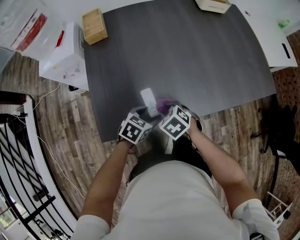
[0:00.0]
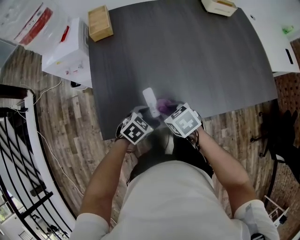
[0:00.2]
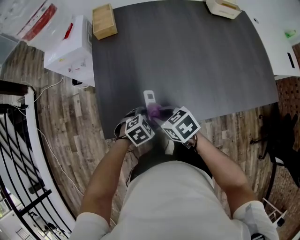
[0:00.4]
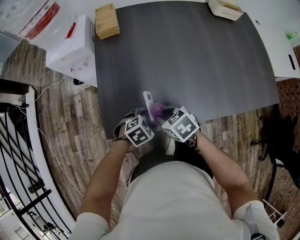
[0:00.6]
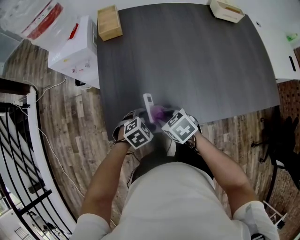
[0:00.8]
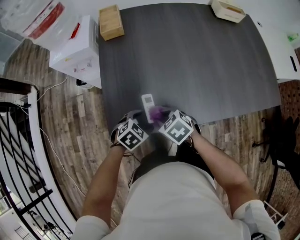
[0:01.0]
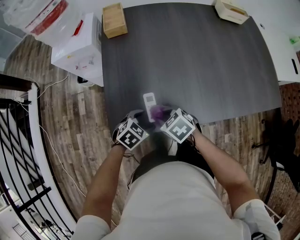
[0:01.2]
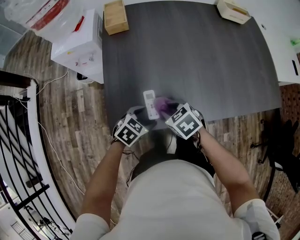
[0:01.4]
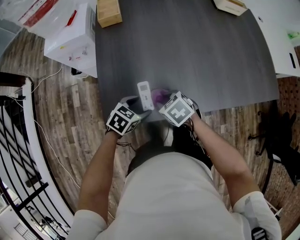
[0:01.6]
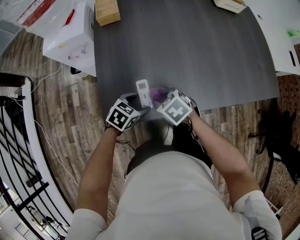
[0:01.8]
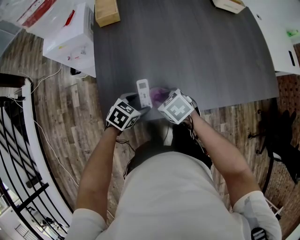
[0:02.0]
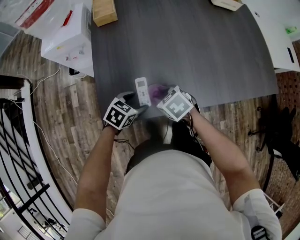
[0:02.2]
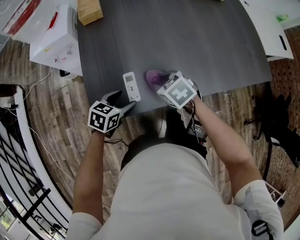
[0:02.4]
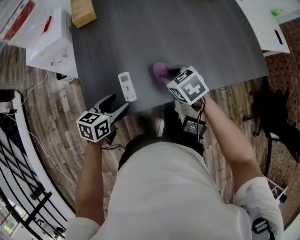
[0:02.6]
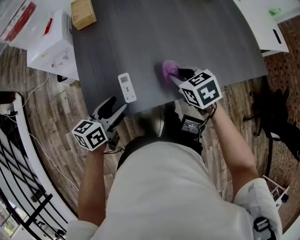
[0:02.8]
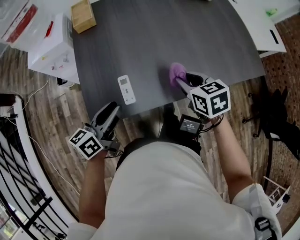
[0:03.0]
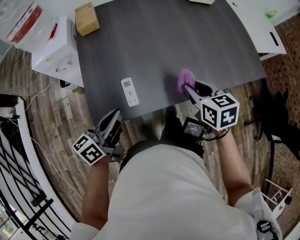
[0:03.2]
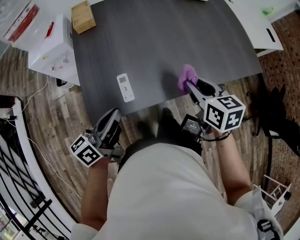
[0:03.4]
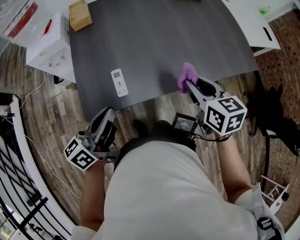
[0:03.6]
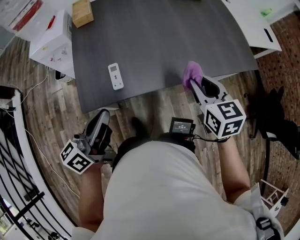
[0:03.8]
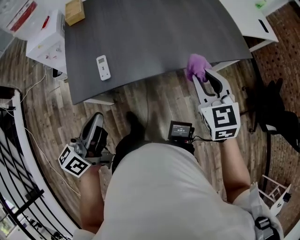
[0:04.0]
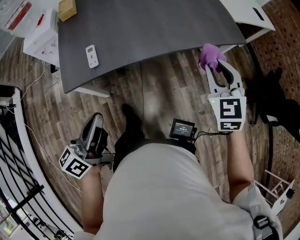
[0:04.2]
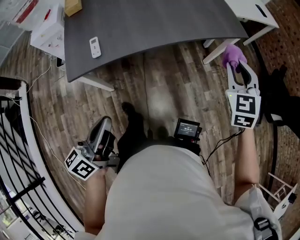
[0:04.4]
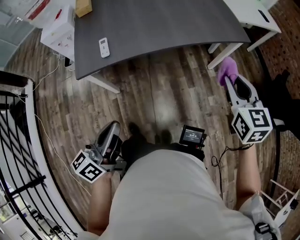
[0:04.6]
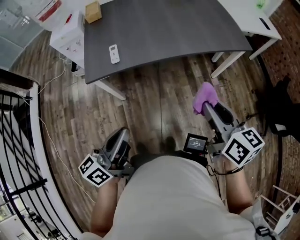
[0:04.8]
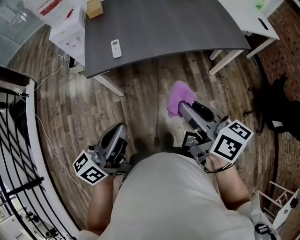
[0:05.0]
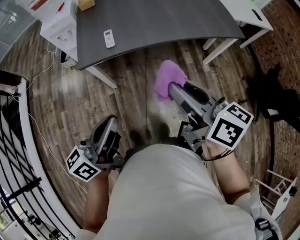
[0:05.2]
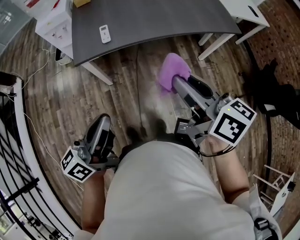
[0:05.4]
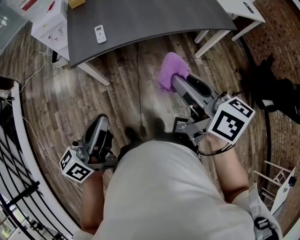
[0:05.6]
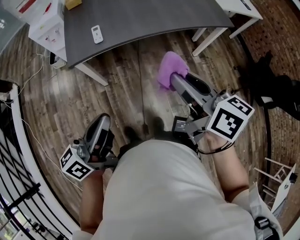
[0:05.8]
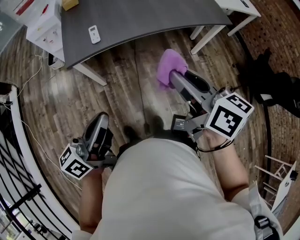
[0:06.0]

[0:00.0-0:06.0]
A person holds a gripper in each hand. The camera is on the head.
0:00.0 to 0:01.6: The right gripper moves approximately 5 cm; the left gripper shifts by roughly 10 cm.
0:01.6 to 0:03.0: The left gripper shifts approximately 15 cm upward, tips its fingers upward by some 40 degrees, and closes, while the right gripper moves to the right and upward, some 20 cm, and changes its angle by approximately 30 degrees.
0:03.0 to 0:04.4: The left gripper goes about 30 cm backward and to the right, and closes its fingers, while the right gripper goes some 40 cm to the right and backward, and swivels approximately 40 degrees.
0:04.4 to 0:06.0: The left gripper shifts about 10 cm backward; the right gripper heads to the left and backward, covering approximately 30 cm, and rotates around the line of its fingers by approximately 50 degrees, clockwise from behind.

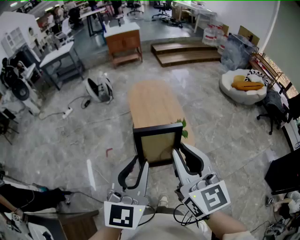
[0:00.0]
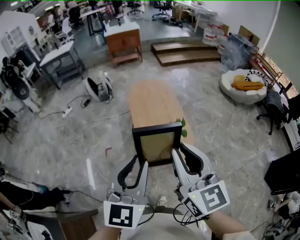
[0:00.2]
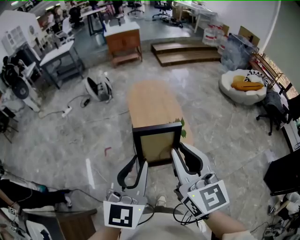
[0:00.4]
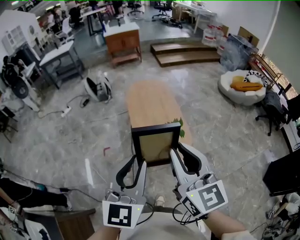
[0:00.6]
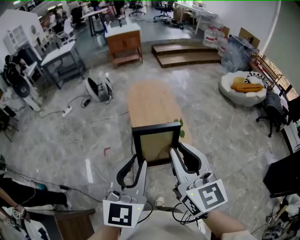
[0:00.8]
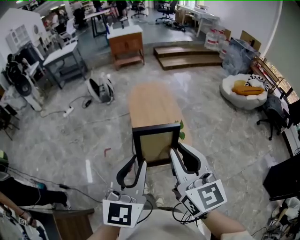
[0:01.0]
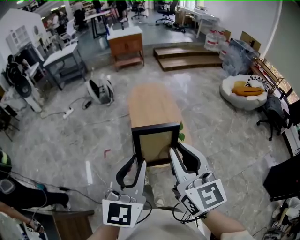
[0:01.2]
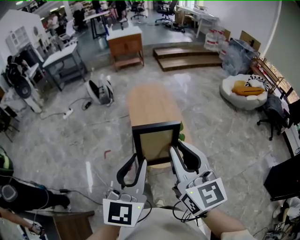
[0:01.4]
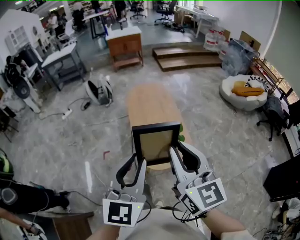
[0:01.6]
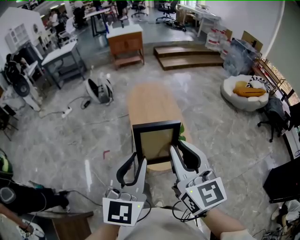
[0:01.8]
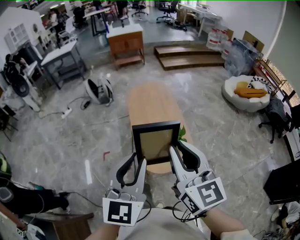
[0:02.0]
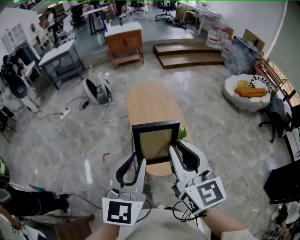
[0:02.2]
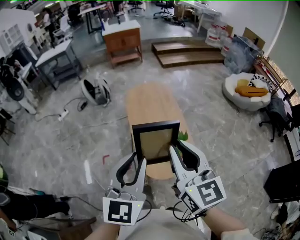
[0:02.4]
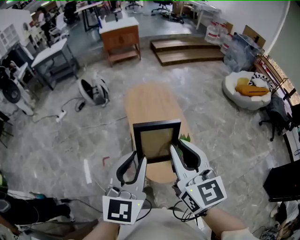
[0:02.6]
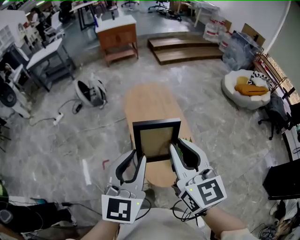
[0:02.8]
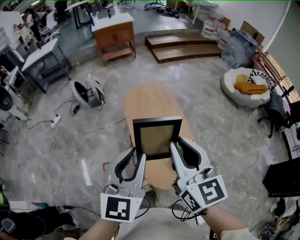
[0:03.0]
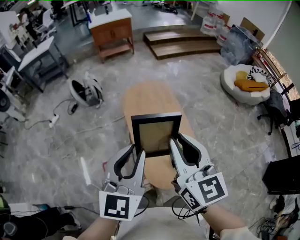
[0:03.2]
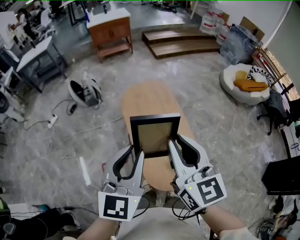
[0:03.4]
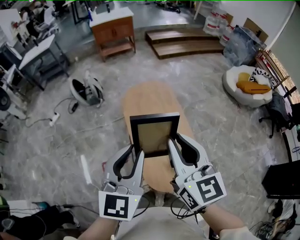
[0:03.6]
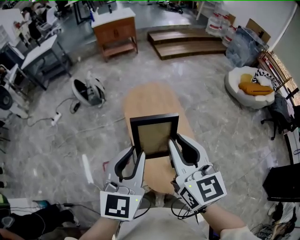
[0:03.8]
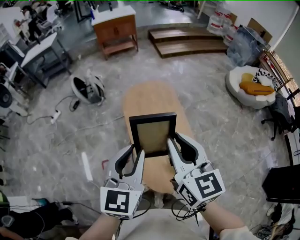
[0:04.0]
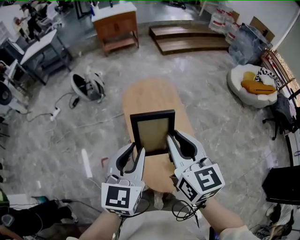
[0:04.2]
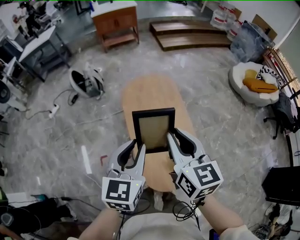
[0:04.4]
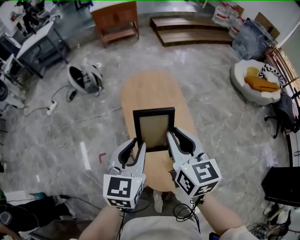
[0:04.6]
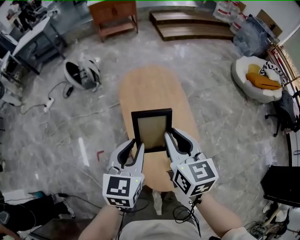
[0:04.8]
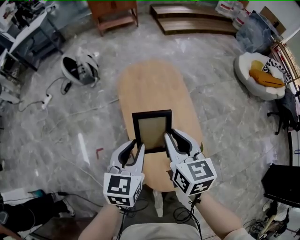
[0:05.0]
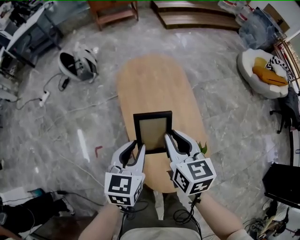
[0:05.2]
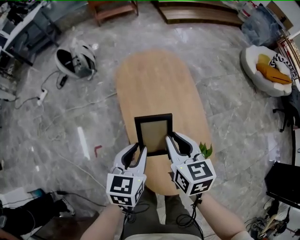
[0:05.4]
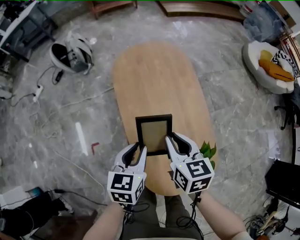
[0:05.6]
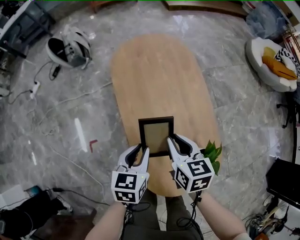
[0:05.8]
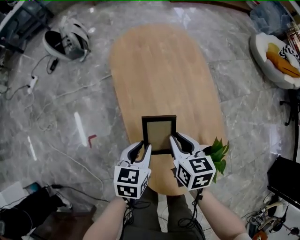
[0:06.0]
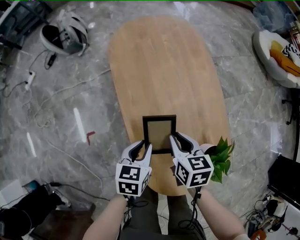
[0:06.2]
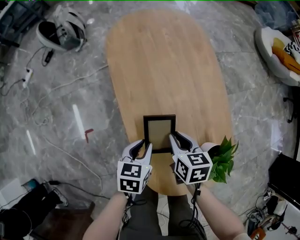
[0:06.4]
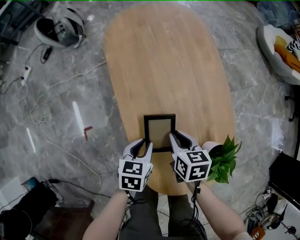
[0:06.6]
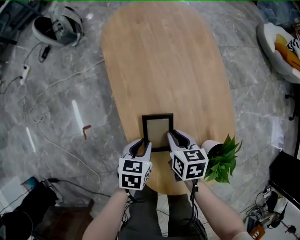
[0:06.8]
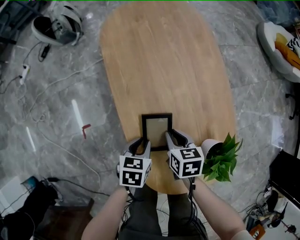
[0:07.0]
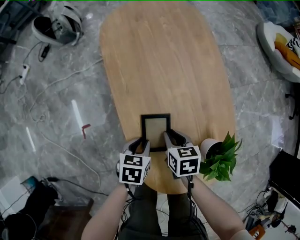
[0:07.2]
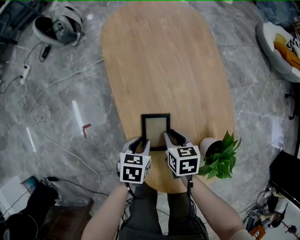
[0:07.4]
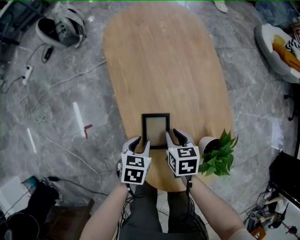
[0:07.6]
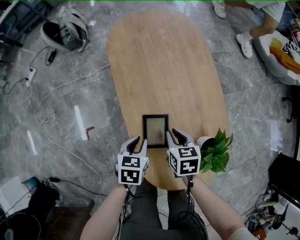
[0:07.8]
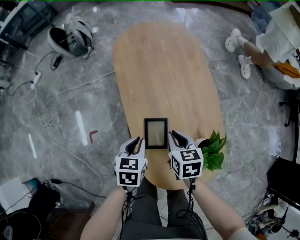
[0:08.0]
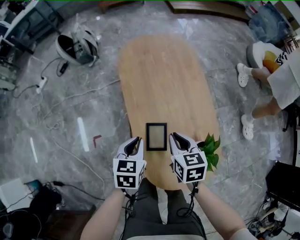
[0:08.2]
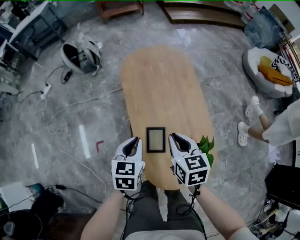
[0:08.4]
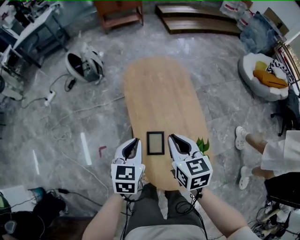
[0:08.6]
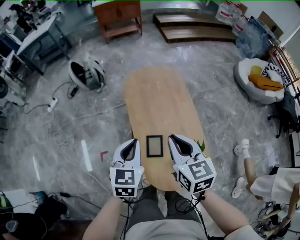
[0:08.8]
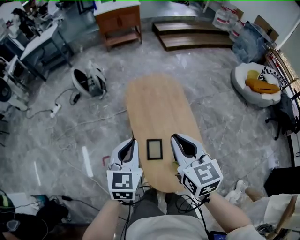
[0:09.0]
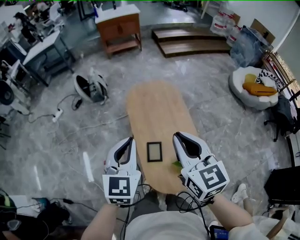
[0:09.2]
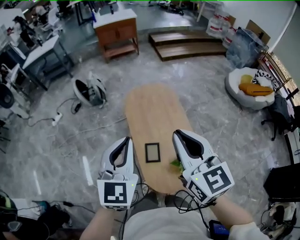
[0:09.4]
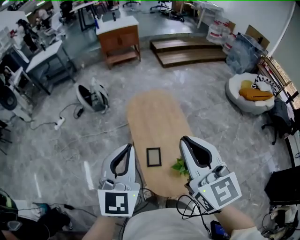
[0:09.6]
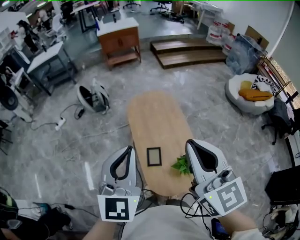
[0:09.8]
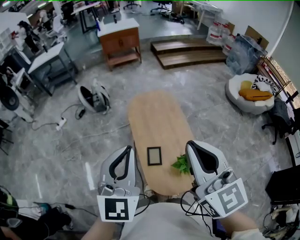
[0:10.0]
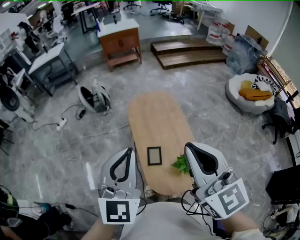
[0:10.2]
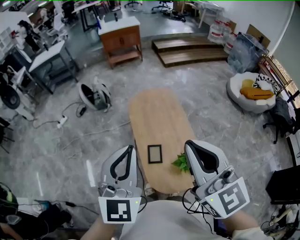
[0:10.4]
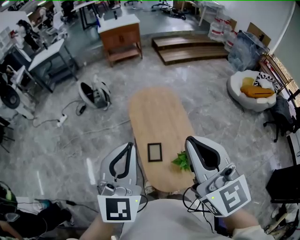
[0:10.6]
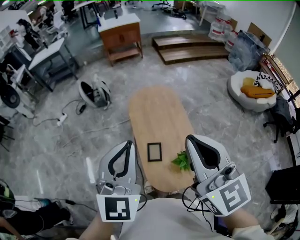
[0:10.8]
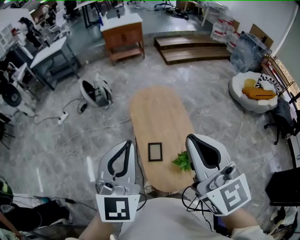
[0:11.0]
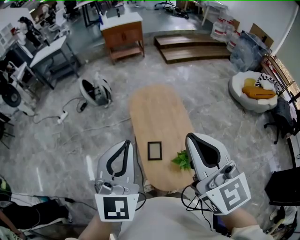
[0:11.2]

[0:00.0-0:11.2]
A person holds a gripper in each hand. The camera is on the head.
0:00.0 to 0:01.6: The grippers stay close to where they were, moving slightly.
0:01.6 to 0:03.2: The two grippers go roughly 30 cm forward.
0:03.2 to 0:04.8: Both grippers travel together downward and forward, approximately 20 cm. The left gripper changes its angle by about 20 degrees.
0:04.8 to 0:06.4: Both grippers move downward, roughly 40 cm. The left gripper rotates approximately 30 degrees. The right gripper turns by about 30 degrees.
0:06.4 to 0:08.0: The right gripper moves about 5 cm, while the left gripper is displaced upward by some 5 cm.
0:08.0 to 0:09.6: The grippers both shift upward by some 60 cm. The right gripper tips its fingers upward by some 50 degrees. Meanwhile the left gripper angles its fingers upward, by roughly 50 degrees.
0:09.6 to 0:11.2: The grippers move only a little.

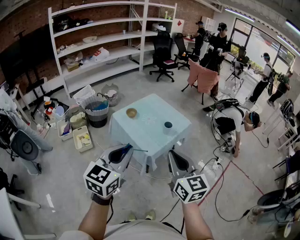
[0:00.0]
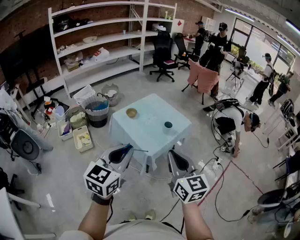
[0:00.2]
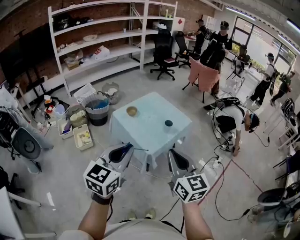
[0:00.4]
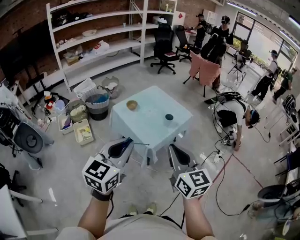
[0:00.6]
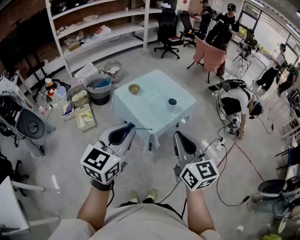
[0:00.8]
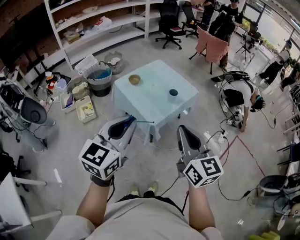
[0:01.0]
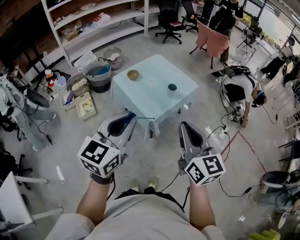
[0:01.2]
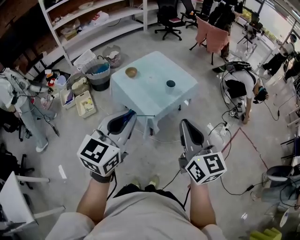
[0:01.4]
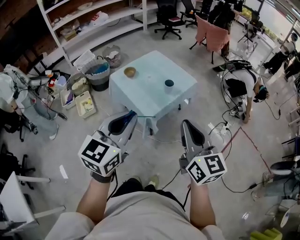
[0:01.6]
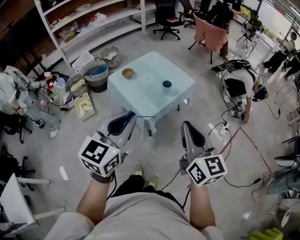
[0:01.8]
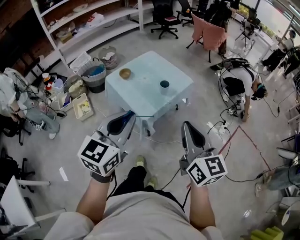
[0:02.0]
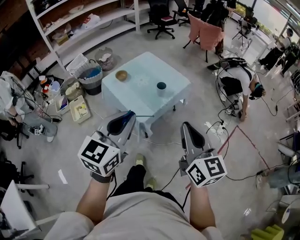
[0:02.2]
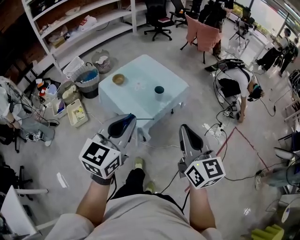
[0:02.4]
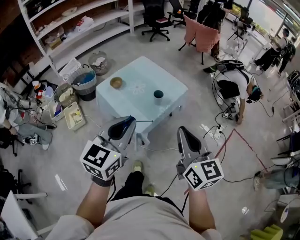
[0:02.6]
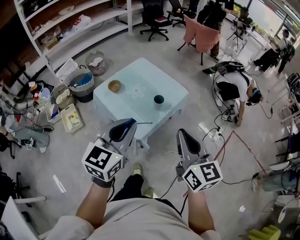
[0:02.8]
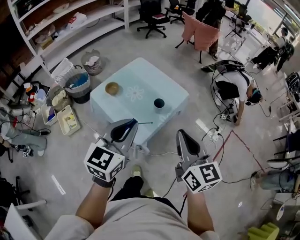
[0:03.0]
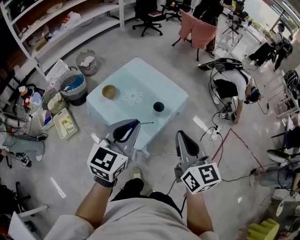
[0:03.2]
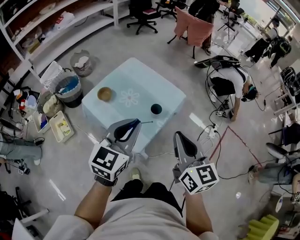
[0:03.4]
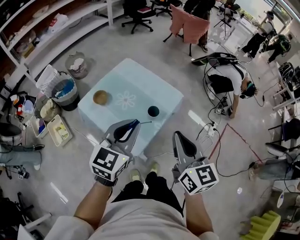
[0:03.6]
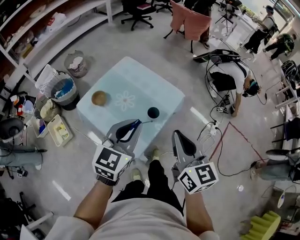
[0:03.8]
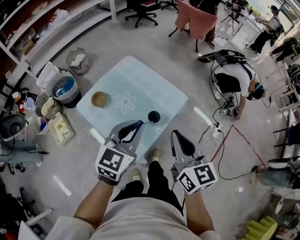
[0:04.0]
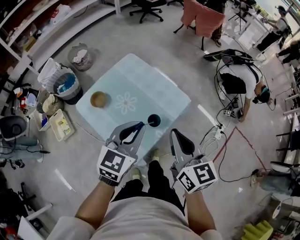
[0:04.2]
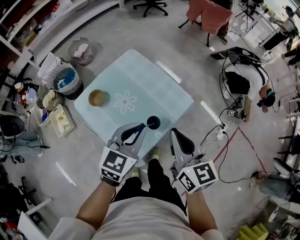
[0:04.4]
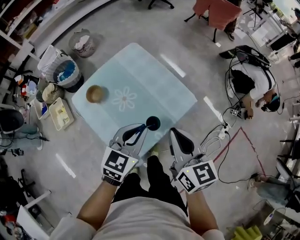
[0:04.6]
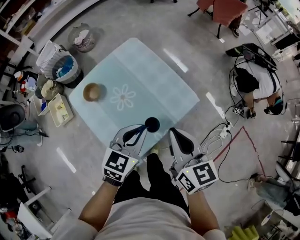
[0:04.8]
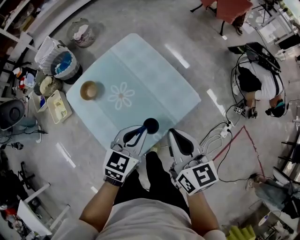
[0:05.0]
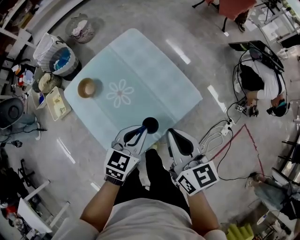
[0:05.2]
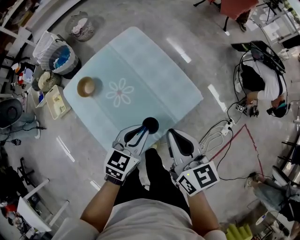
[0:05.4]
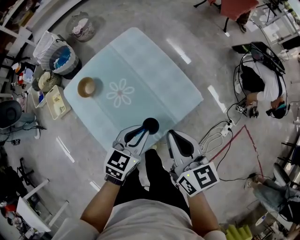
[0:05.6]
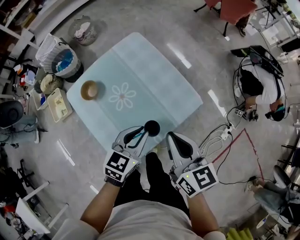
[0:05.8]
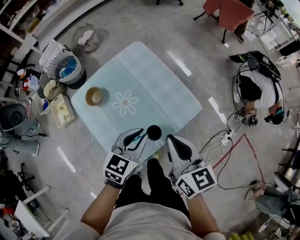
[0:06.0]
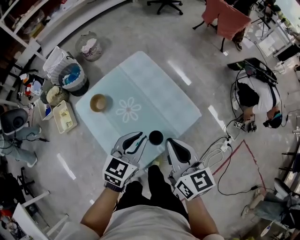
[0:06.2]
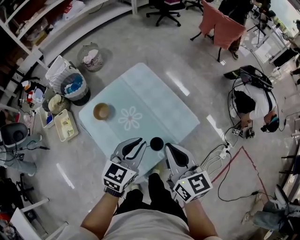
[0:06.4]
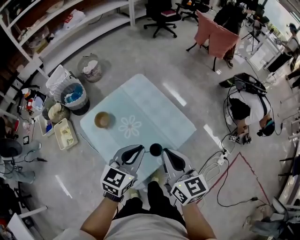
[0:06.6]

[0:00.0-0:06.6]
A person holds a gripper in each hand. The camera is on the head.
0:00.0 to 0:01.6: Both grippers move to the right, approximately 10 cm.
0:01.6 to 0:03.2: The two grippers go approximately 25 cm forward.
0:03.2 to 0:05.0: The left gripper heads downward and forward, covering roughly 35 cm, and turns by about 20 degrees; the right gripper moves forward and downward, approximately 30 cm, and swivels about 20 degrees.
0:05.0 to 0:06.6: Both grippers travel together upward, about 10 cm.
